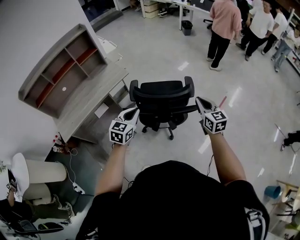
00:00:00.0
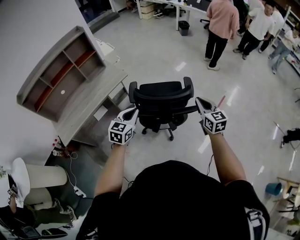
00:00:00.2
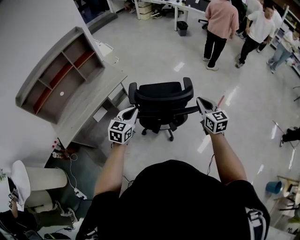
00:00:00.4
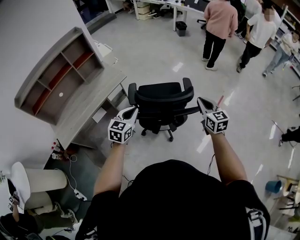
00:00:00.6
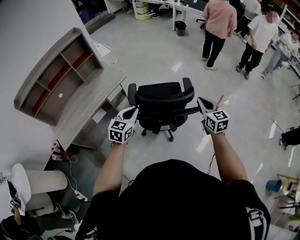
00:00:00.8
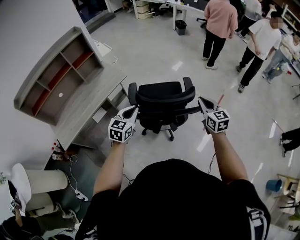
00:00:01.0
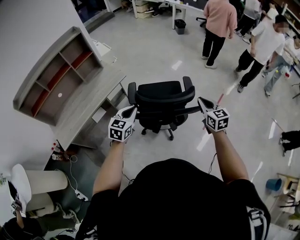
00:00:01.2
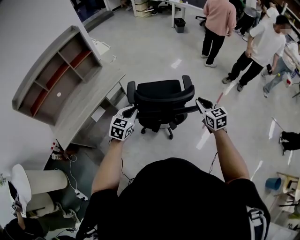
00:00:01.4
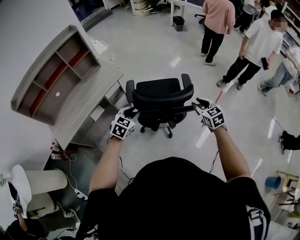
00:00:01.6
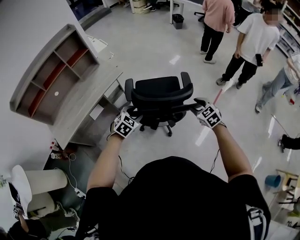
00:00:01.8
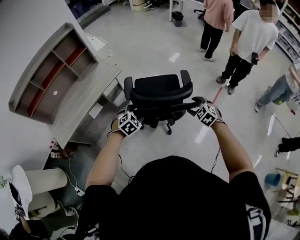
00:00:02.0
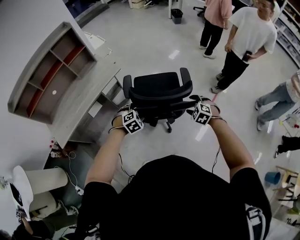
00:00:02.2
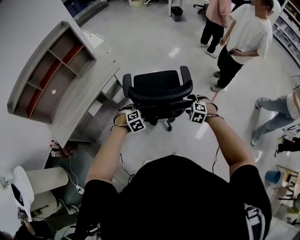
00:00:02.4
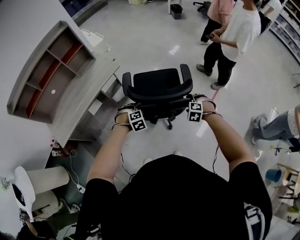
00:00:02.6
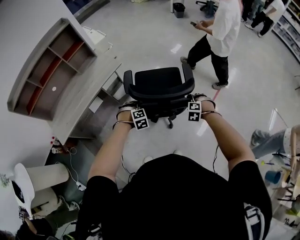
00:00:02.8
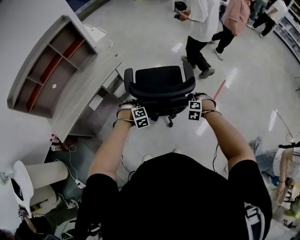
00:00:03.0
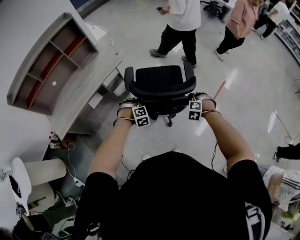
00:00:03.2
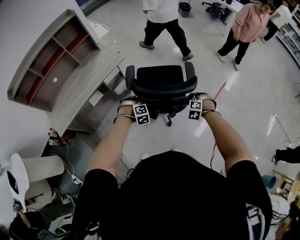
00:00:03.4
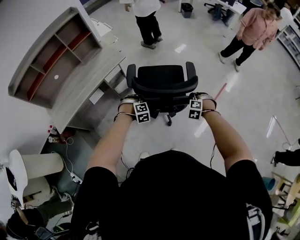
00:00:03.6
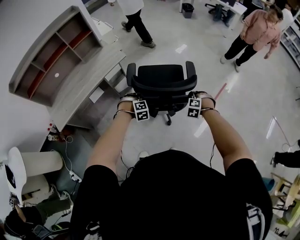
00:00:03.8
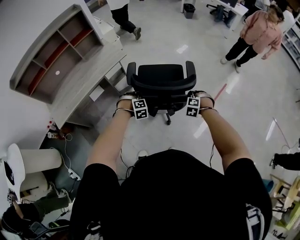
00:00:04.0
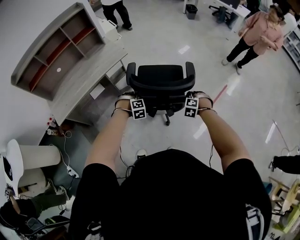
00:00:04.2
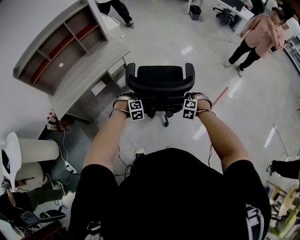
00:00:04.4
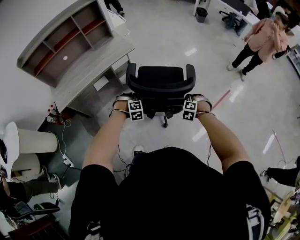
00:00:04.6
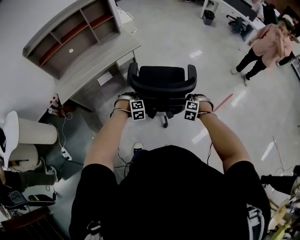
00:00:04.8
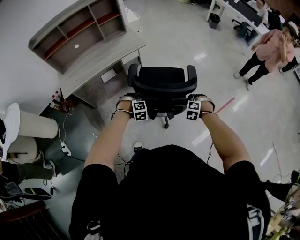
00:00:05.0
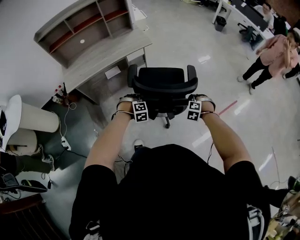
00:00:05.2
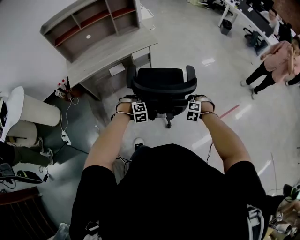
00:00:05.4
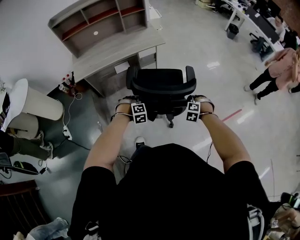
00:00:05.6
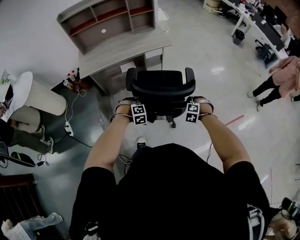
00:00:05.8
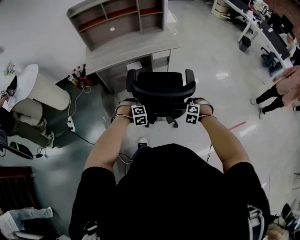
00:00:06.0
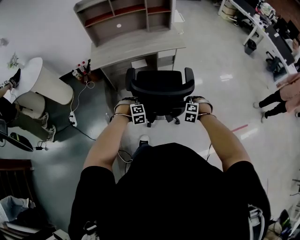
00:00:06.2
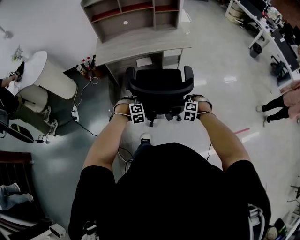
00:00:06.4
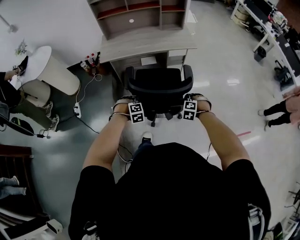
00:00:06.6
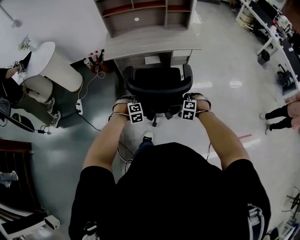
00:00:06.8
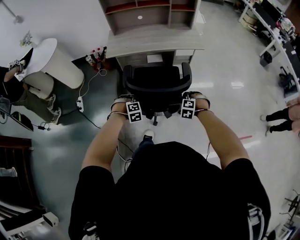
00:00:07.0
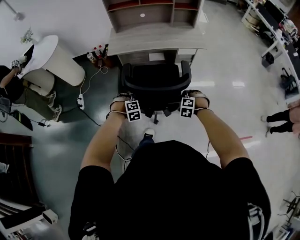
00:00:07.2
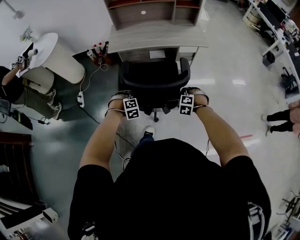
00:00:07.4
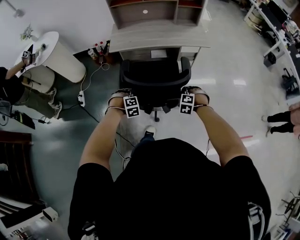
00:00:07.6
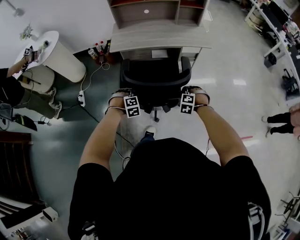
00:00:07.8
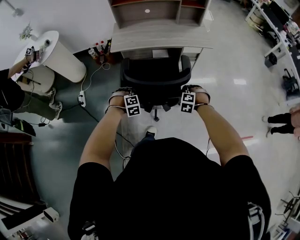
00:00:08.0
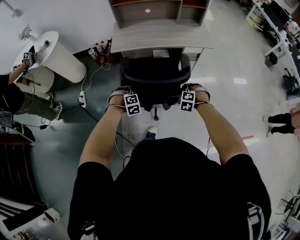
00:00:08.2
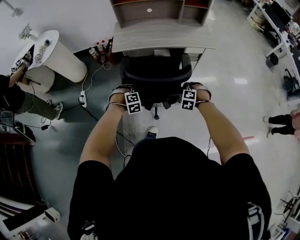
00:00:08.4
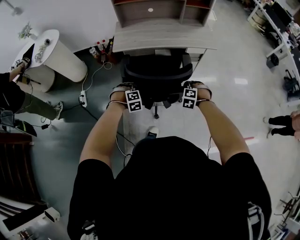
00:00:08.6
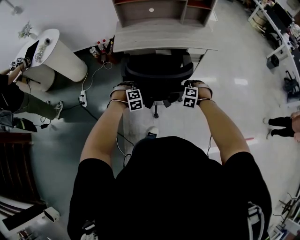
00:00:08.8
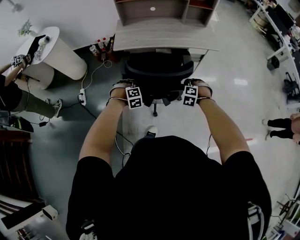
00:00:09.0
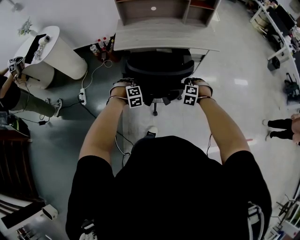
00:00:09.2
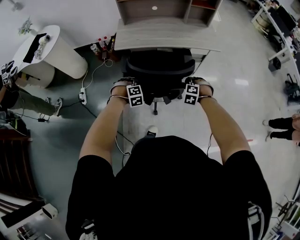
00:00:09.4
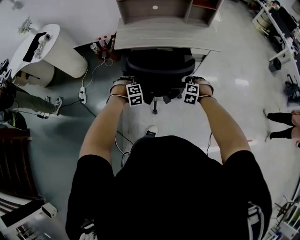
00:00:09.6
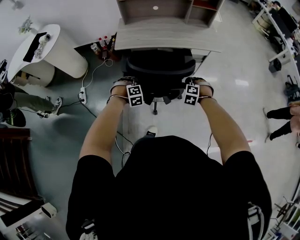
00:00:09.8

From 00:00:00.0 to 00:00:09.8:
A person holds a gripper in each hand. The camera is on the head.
From 00:00:00.0 to 00:00:01.4: The left gripper ends up roughly 5 cm from where it was.
From 00:00:01.4 to 00:00:02.8: Both grippers travel together downward, approximately 20 cm. The left gripper tilts its fingers roughly 40 degrees downward, and opens. Meanwhile the right gripper tips its fingers downward by about 40 degrees, and opens.
From 00:00:02.8 to 00:00:04.2: The right gripper closes its fingers; the left gripper closes its fingers.
From 00:00:04.2 to 00:00:05.6: The right gripper goes approximately 15 cm to the left and backward, and swivels about 20 degrees. The left gripper moves backward and to the left, approximately 20 cm, and rotates about 20 degrees.
From 00:00:05.6 to 00:00:07.0: The grippers both shift to the left by approximately 20 cm. The left gripper rotates some 20 degrees. Meanwhile the right gripper rotates approximately 20 degrees.
From 00:00:07.0 to 00:00:08.4: Both grippers move forward and to the left, approximately 10 cm.
From 00:00:08.4 to 00:00:09.8: Both grippers move forward, roughly 5 cm.

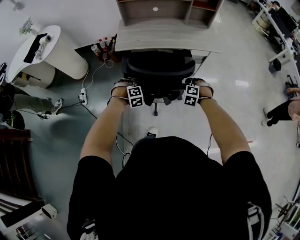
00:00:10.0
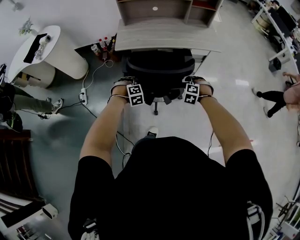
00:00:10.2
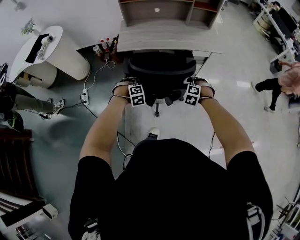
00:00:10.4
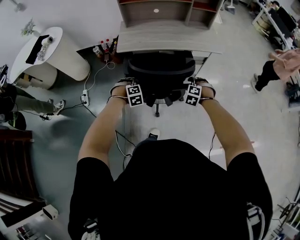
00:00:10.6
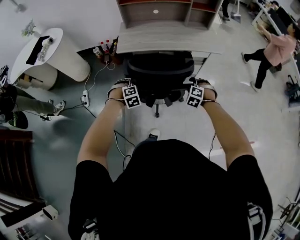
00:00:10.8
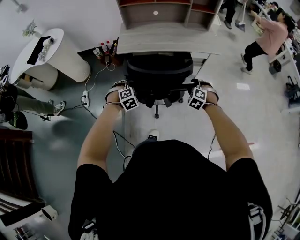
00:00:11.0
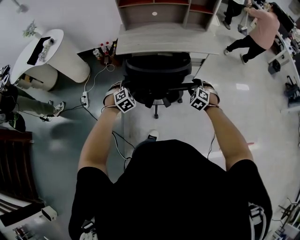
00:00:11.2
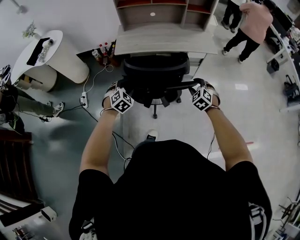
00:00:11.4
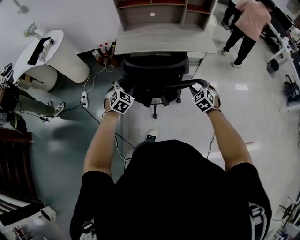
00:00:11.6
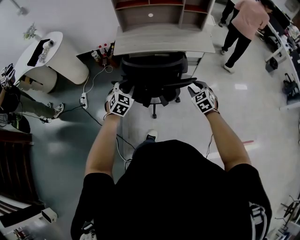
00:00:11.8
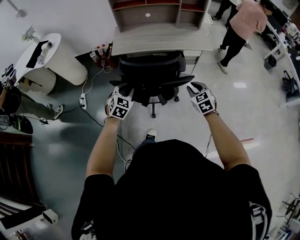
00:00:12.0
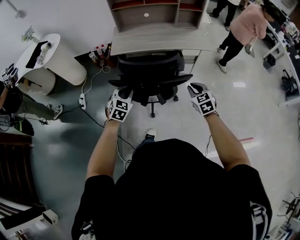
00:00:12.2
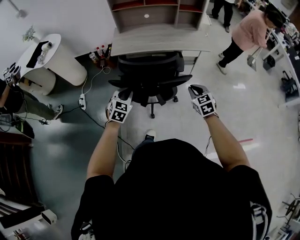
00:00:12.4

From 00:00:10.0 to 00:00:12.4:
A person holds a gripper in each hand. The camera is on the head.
From 00:00:10.0 to 00:00:11.2: The two grippers go about 5 cm upward. The left gripper rotates roughly 20 degrees, and opens its fingers. Meanwhile the right gripper swivels approximately 20 degrees, and opens.
From 00:00:11.2 to 00:00:12.4: Both grippers move backward and upward, roughly 10 cm. The left gripper turns by roughly 30 degrees, and closes. Meanwhile the right gripper changes its angle by some 40 degrees, and closes its fingers.

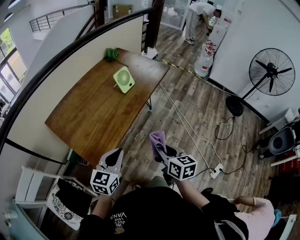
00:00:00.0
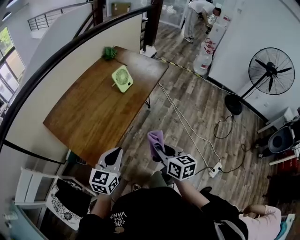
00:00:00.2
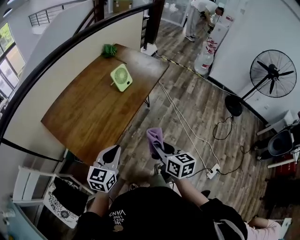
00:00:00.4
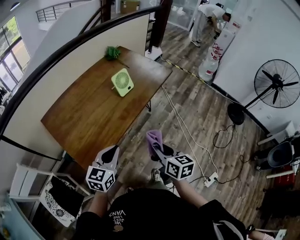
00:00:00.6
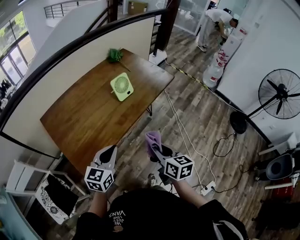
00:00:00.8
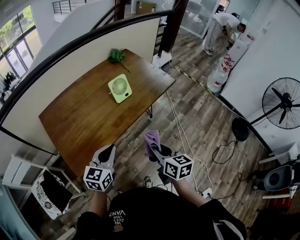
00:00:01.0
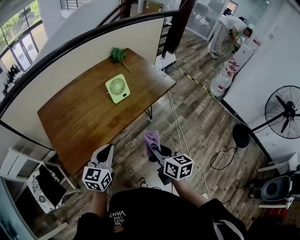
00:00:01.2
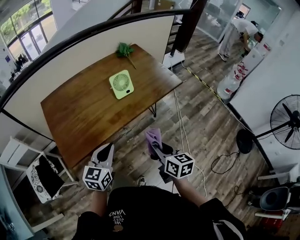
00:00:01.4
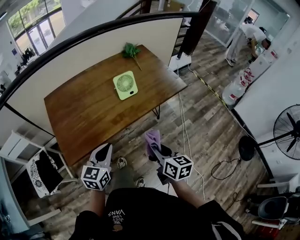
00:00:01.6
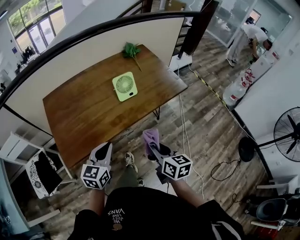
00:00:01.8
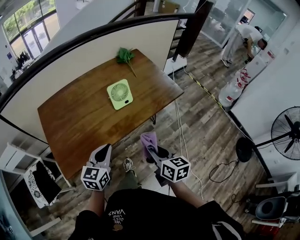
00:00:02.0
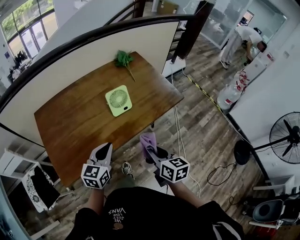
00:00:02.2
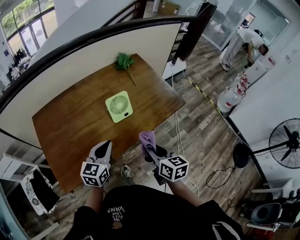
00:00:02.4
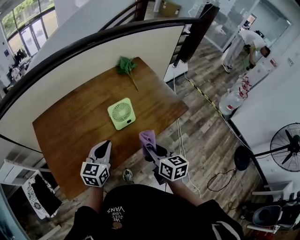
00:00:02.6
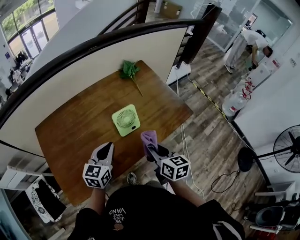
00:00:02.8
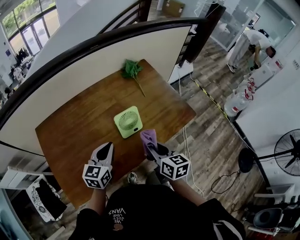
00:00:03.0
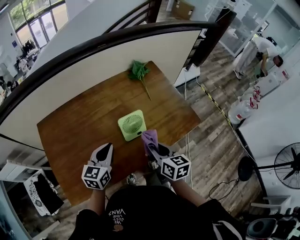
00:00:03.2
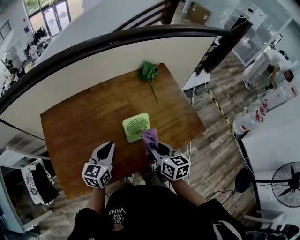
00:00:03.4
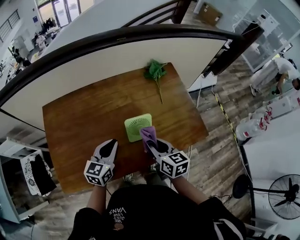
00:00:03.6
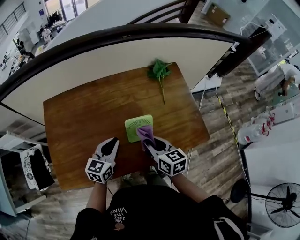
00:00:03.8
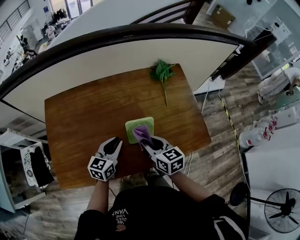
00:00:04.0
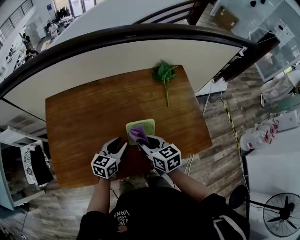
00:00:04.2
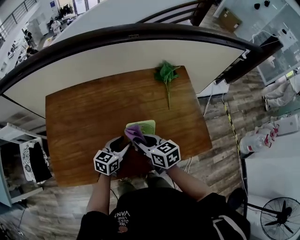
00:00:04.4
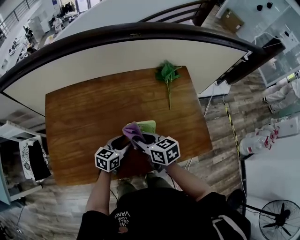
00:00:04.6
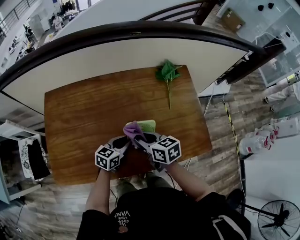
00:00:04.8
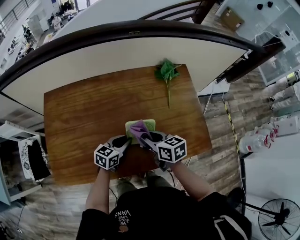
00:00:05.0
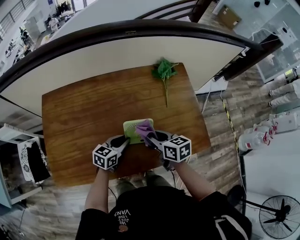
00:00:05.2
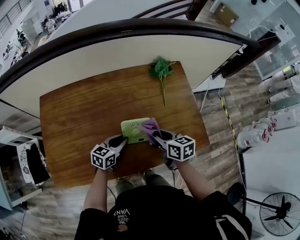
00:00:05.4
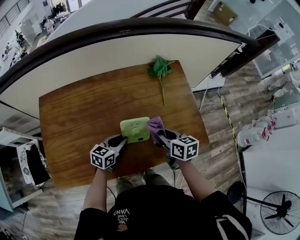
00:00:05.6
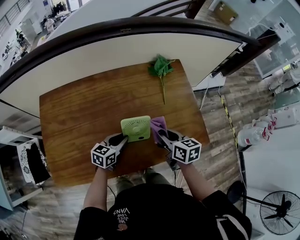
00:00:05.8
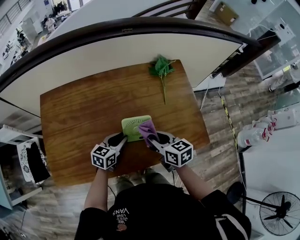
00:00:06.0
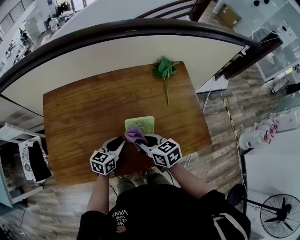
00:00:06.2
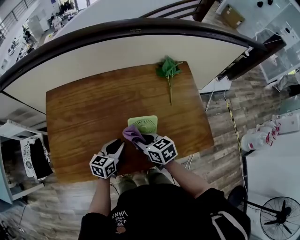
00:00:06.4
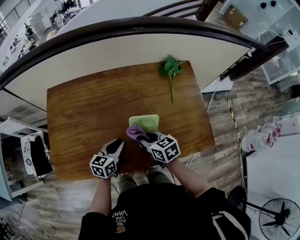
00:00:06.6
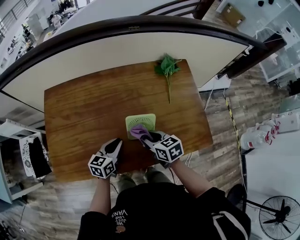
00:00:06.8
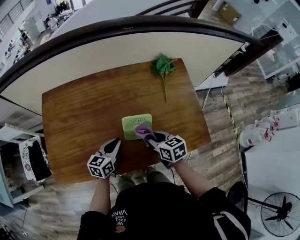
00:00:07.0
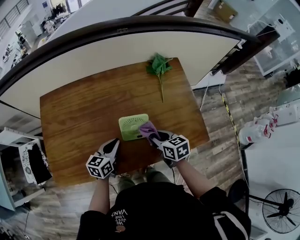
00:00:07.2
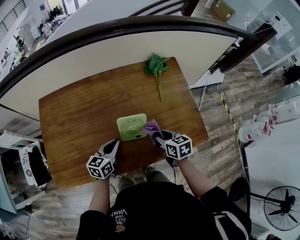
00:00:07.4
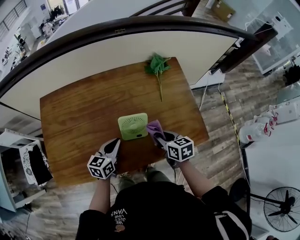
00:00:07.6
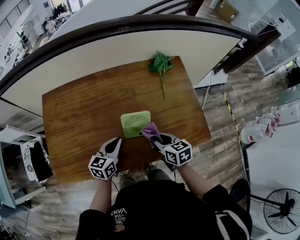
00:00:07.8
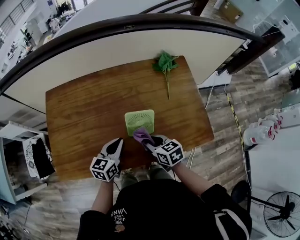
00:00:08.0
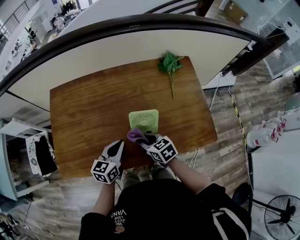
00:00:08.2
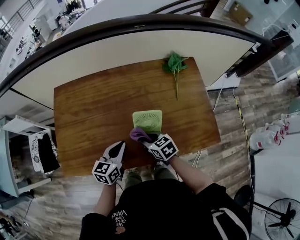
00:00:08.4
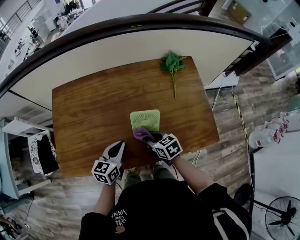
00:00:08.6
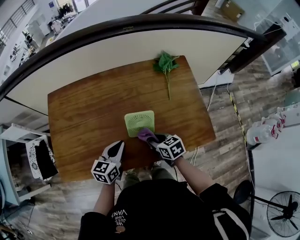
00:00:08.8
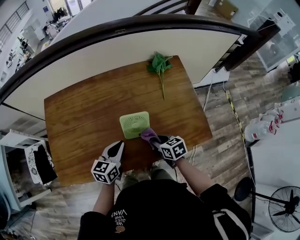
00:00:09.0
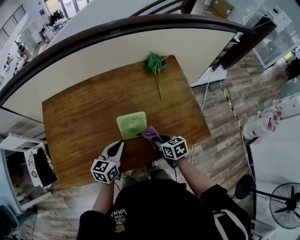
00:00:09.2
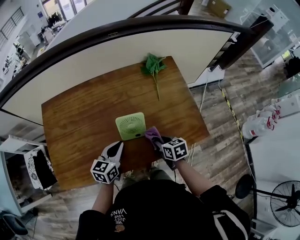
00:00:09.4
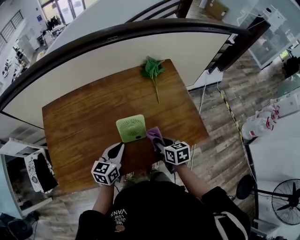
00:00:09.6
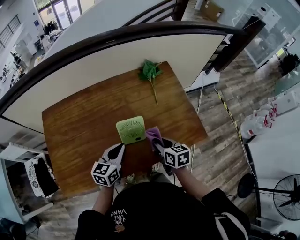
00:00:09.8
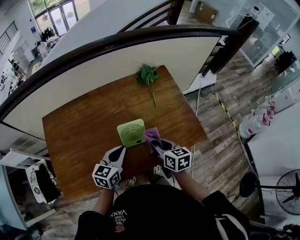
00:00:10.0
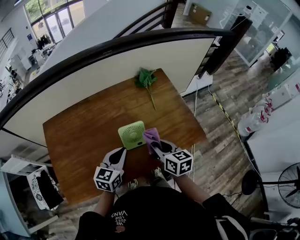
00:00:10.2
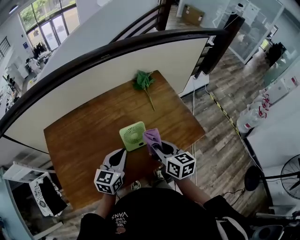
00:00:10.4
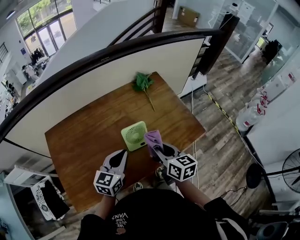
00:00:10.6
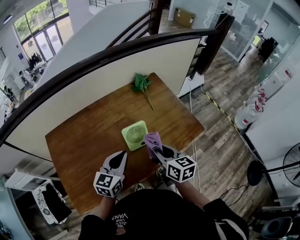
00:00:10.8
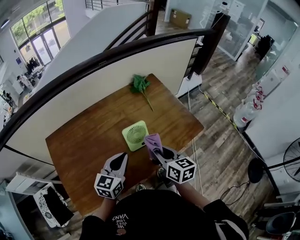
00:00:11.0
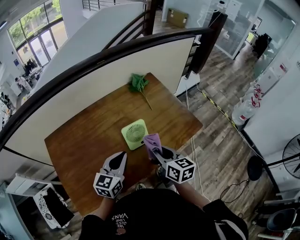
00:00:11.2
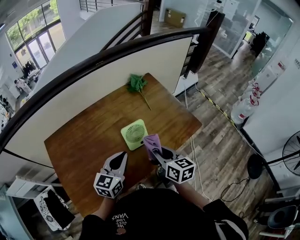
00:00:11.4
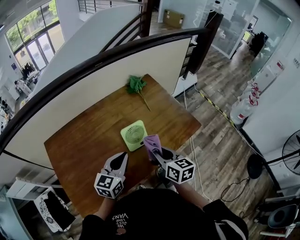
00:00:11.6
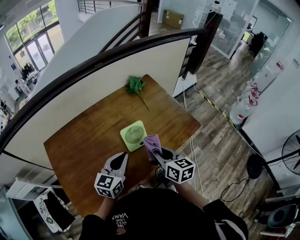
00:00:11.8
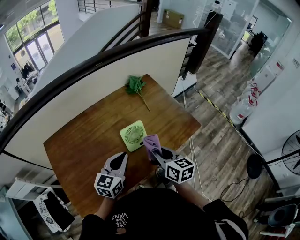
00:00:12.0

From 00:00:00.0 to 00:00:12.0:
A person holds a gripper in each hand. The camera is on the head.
From 00:00:00.0 to 00:00:01.6: The right gripper changes place by some 20 cm, and changes its angle by some 20 degrees. Meanwhile the left gripper shifts by approximately 15 cm, and changes its angle by some 30 degrees.
From 00:00:01.6 to 00:00:03.0: The two grippers go approximately 25 cm forward.
From 00:00:03.0 to 00:00:04.4: The left gripper heads downward and forward, covering roughly 10 cm, and opens up, while the right gripper is displaced forward and to the left by roughly 15 cm, and swivels approximately 40 degrees.
From 00:00:04.4 to 00:00:06.0: The right gripper travels to the right by some 5 cm. Meanwhile the left gripper closes.
From 00:00:06.0 to 00:00:07.6: The right gripper heads to the right, covering some 5 cm.
From 00:00:07.6 to 00:00:09.0: The right gripper heads downward, covering approximately 5 cm, and travels to the left and back again, some 15 cm each way.
From 00:00:09.0 to 00:00:10.4: The right gripper shifts approximately 15 cm upward, and swivels some 30 degrees. The left gripper goes some 10 cm upward.
From 00:00:10.4 to 00:00:12.0: The grippers stay close to where they were, moving slightly.
